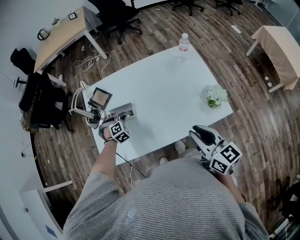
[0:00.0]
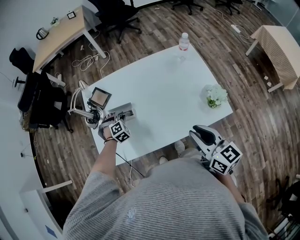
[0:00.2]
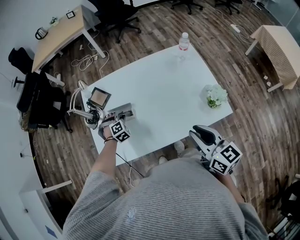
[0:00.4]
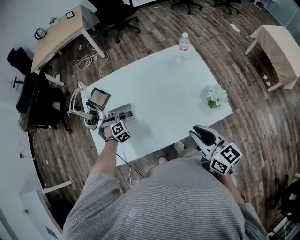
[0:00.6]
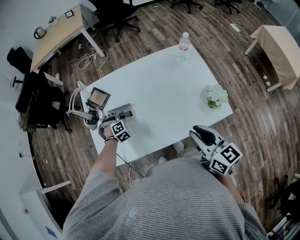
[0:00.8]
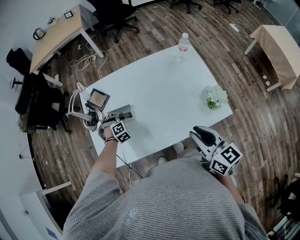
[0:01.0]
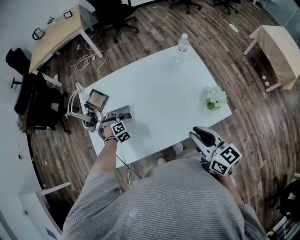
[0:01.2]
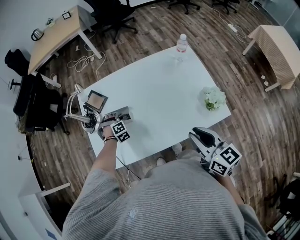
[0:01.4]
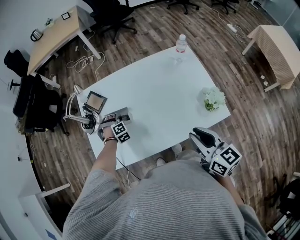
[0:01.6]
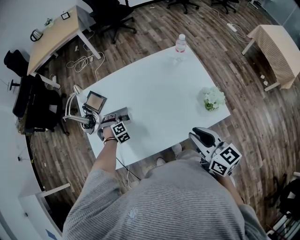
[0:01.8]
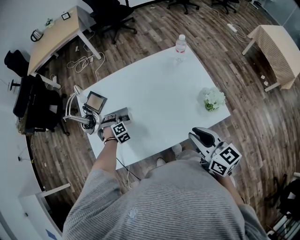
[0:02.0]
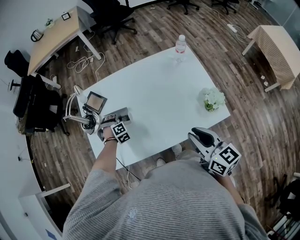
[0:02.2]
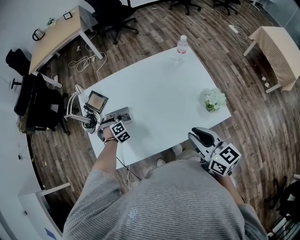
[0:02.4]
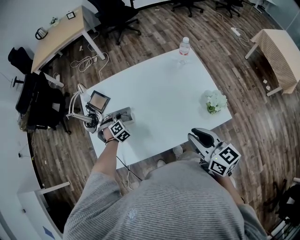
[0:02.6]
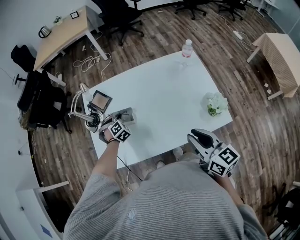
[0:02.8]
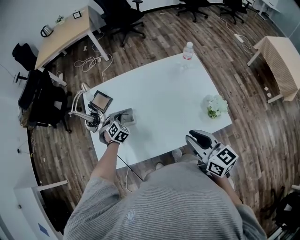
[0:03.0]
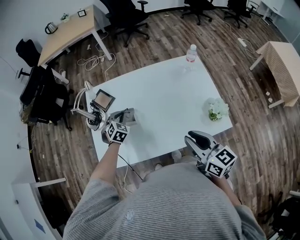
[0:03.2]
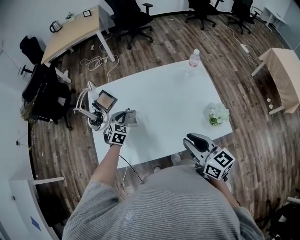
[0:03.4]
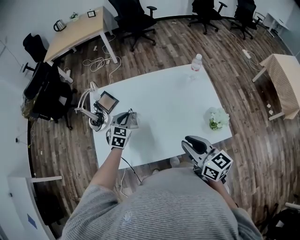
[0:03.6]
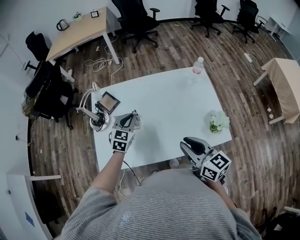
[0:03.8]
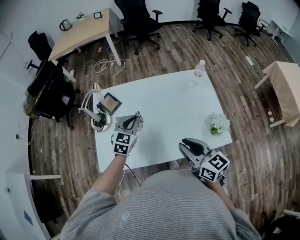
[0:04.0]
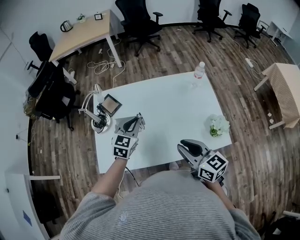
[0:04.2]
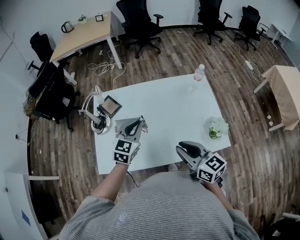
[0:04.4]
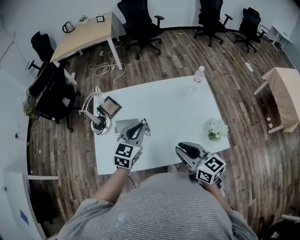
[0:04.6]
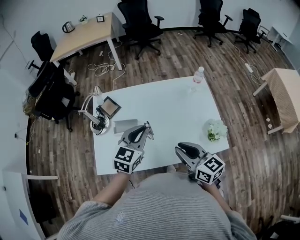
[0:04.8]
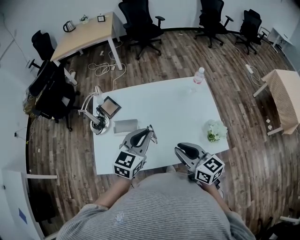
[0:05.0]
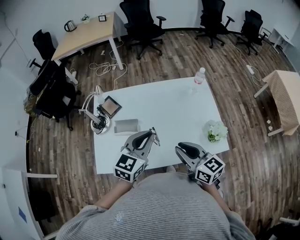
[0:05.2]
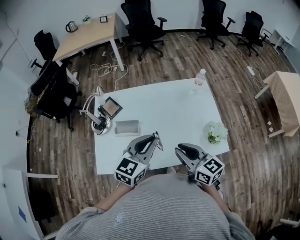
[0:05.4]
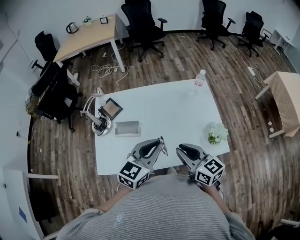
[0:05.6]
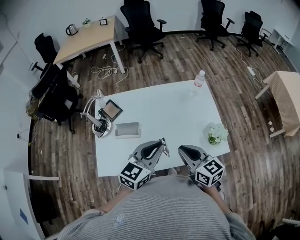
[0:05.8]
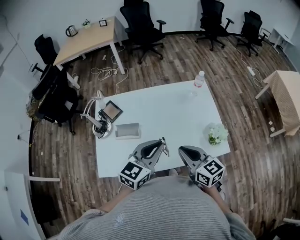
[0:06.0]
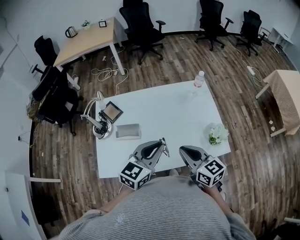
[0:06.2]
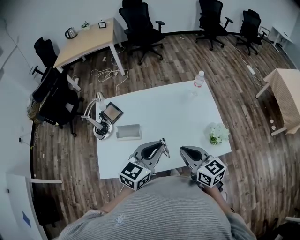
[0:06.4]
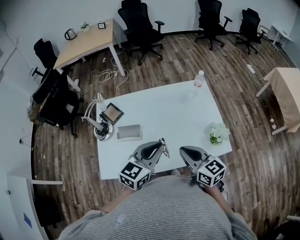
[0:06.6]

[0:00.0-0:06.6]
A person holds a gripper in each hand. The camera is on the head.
0:00.0 to 0:01.6: The left gripper moves roughly 5 cm.
0:01.6 to 0:03.2: The left gripper shifts about 10 cm upward, and rolls counterclockwise, seen from behind, by approximately 40 degrees.
0:03.2 to 0:05.0: The left gripper moves upward, backward and to the right, approximately 25 cm, and rotates about 40 degrees.
0:05.0 to 0:06.6: The left gripper changes place by approximately 5 cm.

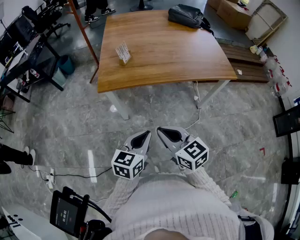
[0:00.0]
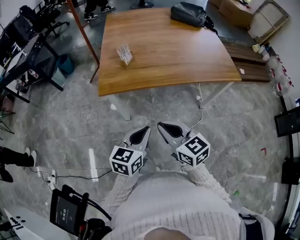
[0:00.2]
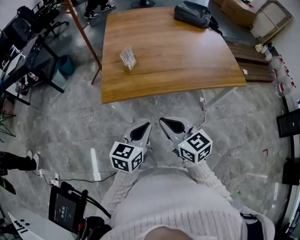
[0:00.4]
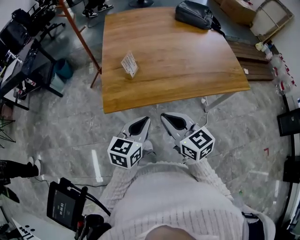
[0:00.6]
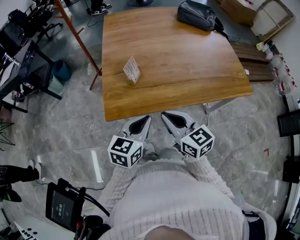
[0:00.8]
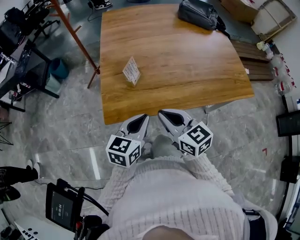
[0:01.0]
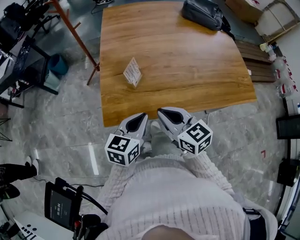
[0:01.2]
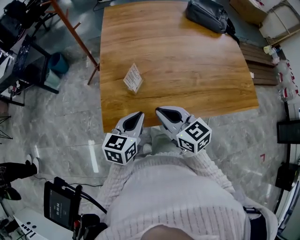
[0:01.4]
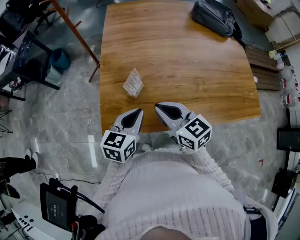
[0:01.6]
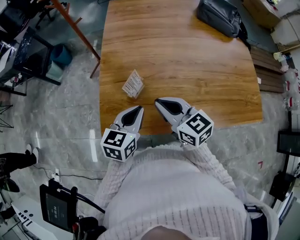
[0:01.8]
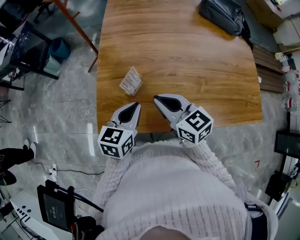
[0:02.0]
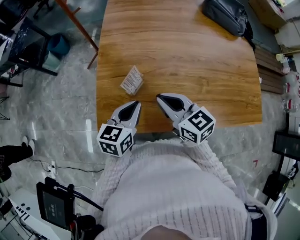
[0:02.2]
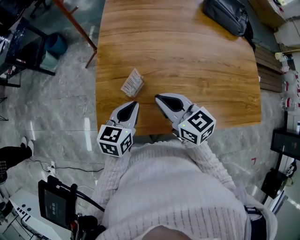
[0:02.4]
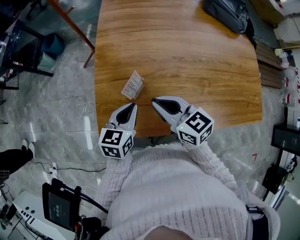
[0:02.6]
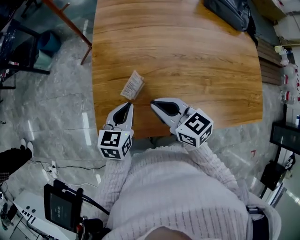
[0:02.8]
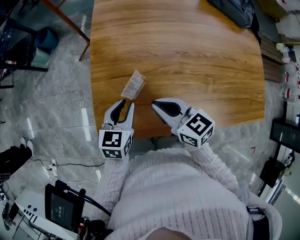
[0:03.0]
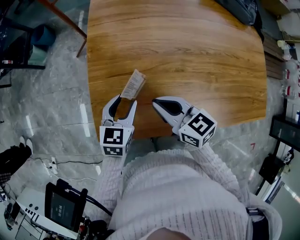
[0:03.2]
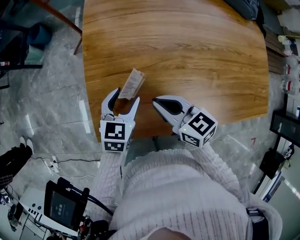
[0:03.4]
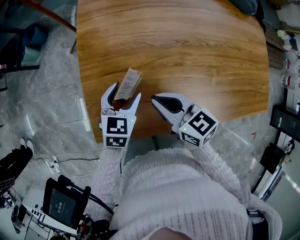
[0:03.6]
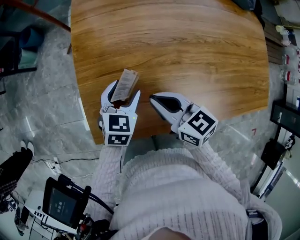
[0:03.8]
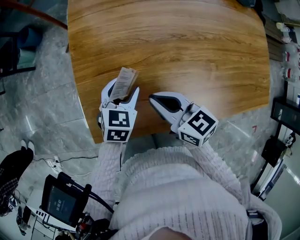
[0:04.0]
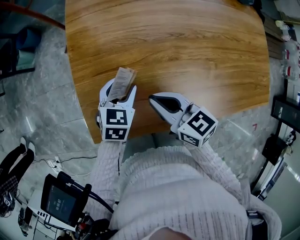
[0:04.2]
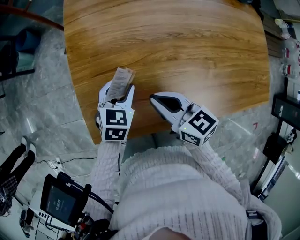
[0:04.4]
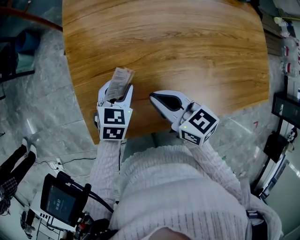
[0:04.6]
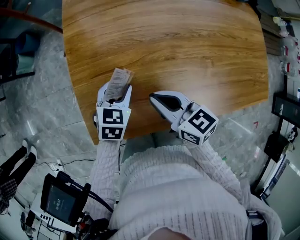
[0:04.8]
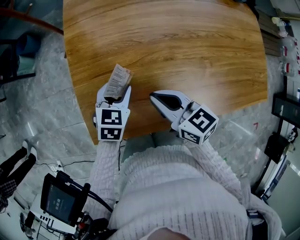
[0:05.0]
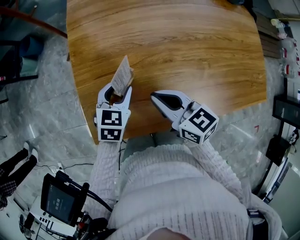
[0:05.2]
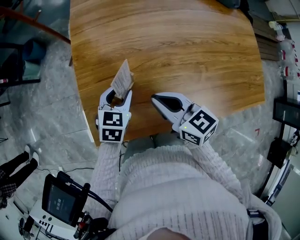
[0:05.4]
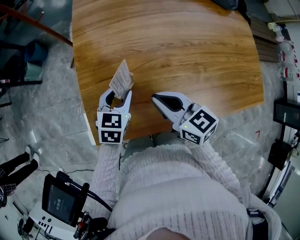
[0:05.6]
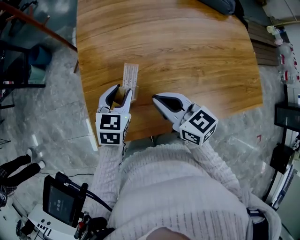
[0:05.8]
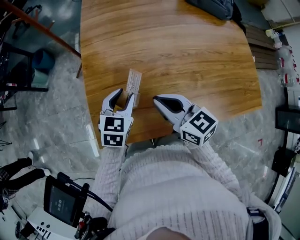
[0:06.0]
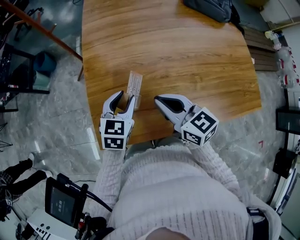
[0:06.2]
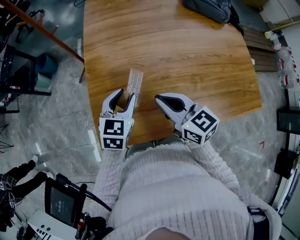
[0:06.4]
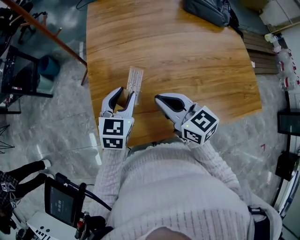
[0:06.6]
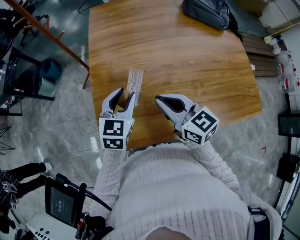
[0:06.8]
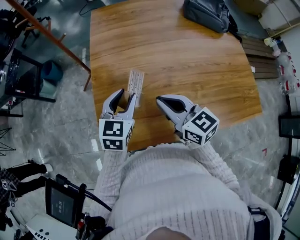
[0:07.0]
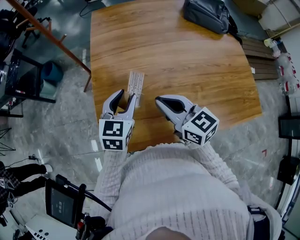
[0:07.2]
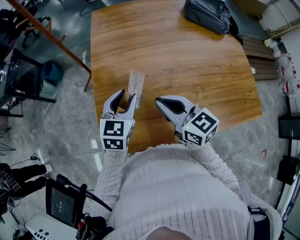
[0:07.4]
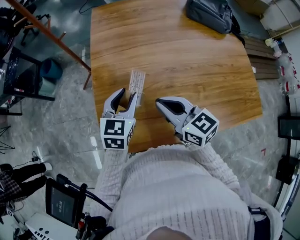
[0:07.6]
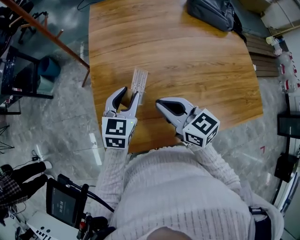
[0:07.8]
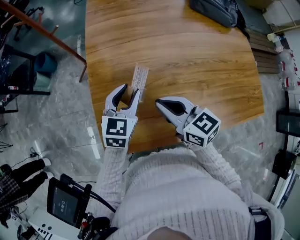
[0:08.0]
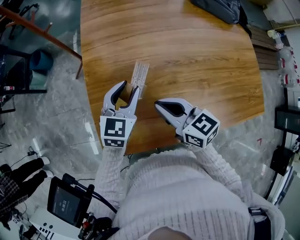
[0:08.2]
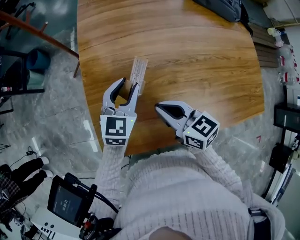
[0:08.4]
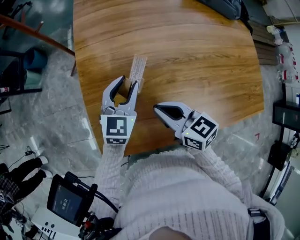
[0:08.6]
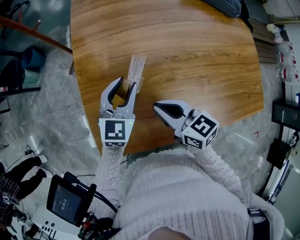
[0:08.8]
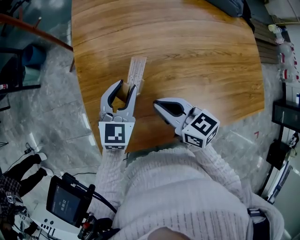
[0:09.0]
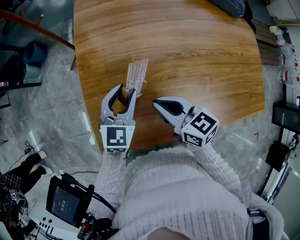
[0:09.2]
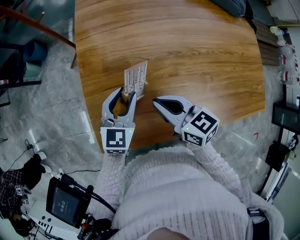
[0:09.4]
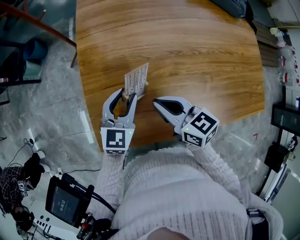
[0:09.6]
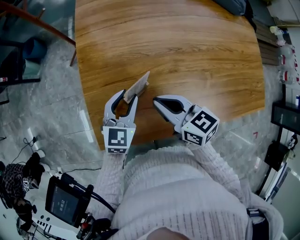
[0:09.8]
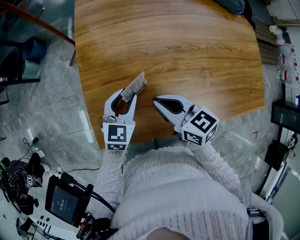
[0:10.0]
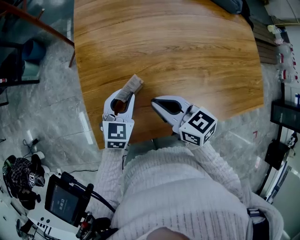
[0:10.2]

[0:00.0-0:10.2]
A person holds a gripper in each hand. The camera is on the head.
0:00.0 to 0:01.4: The grippers both shift forward by some 35 cm.
0:01.4 to 0:03.0: The right gripper moves forward, about 10 cm; the left gripper travels forward and downward by approximately 15 cm.
0:03.0 to 0:04.4: The left gripper goes roughly 5 cm downward, swivels some 20 degrees, and opens up.
0:04.4 to 0:05.8: Both grippers travel together upward, some 5 cm.
0:05.8 to 0:07.2: The grippers both shift upward by about 5 cm.
0:07.2 to 0:08.8: The right gripper heads downward, covering some 10 cm. The left gripper travels downward by about 5 cm.
0:08.8 to 0:10.2: The left gripper goes approximately 10 cm downward and backward.

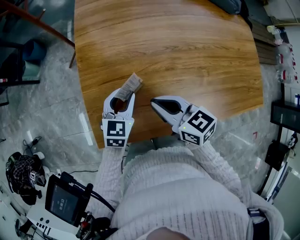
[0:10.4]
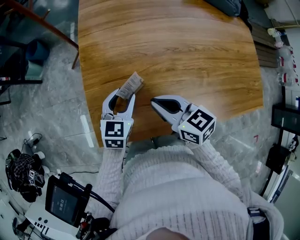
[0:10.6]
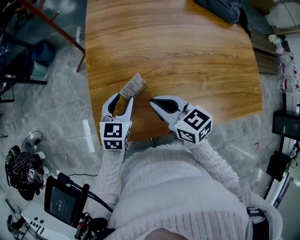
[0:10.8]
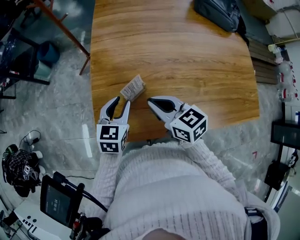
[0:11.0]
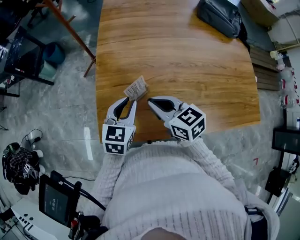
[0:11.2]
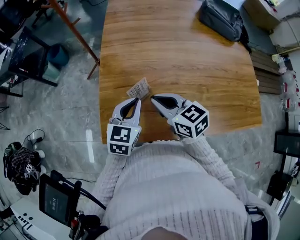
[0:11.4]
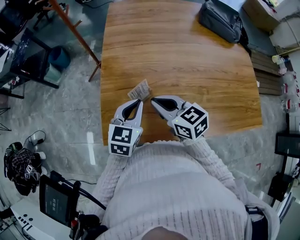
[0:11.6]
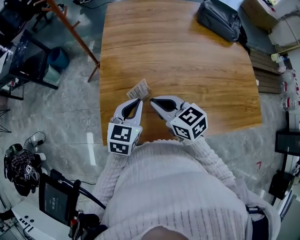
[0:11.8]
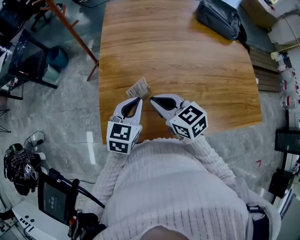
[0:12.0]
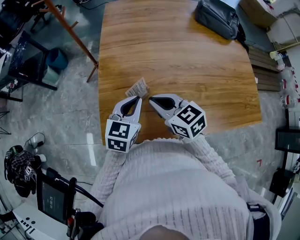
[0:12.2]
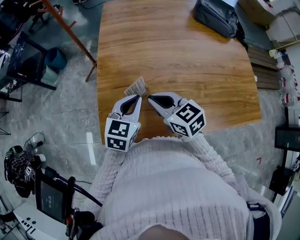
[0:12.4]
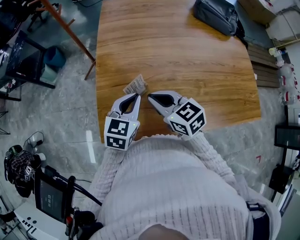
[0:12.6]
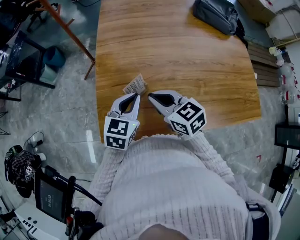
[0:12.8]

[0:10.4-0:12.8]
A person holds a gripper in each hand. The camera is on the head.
0:10.4 to 0:11.6: The left gripper goes some 10 cm upward, and closes its fingers.
0:11.6 to 0:12.8: Neither gripper changes place.

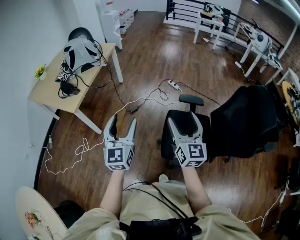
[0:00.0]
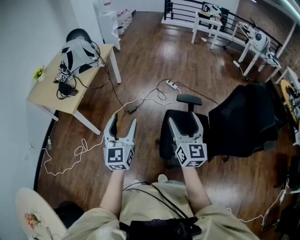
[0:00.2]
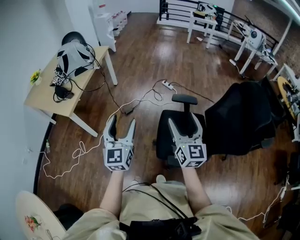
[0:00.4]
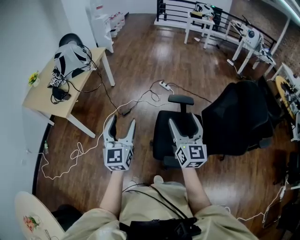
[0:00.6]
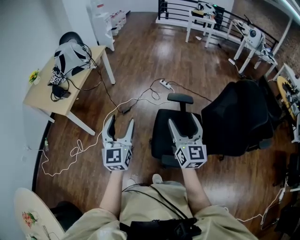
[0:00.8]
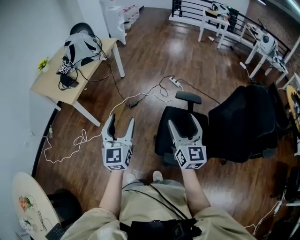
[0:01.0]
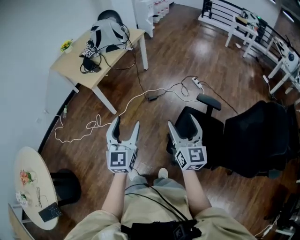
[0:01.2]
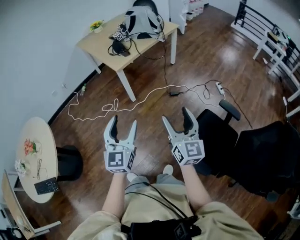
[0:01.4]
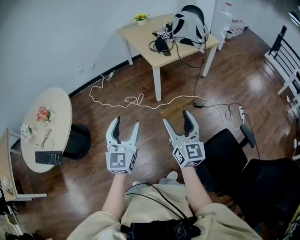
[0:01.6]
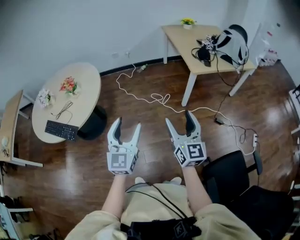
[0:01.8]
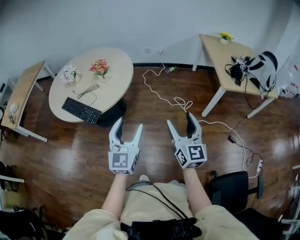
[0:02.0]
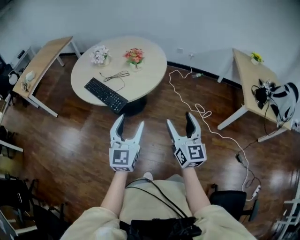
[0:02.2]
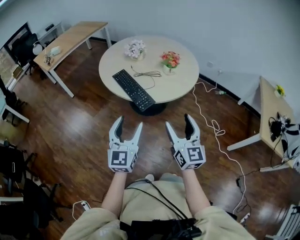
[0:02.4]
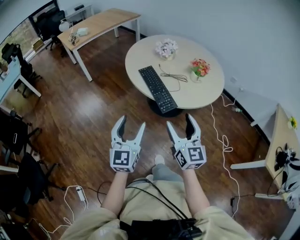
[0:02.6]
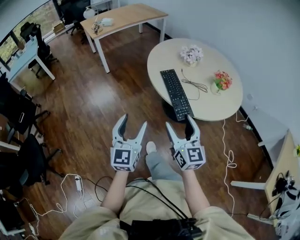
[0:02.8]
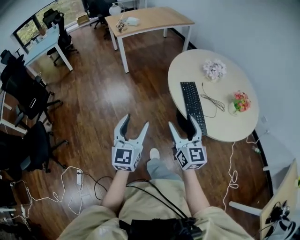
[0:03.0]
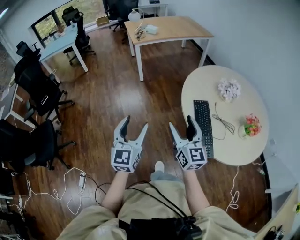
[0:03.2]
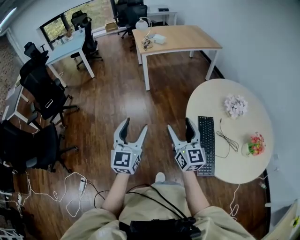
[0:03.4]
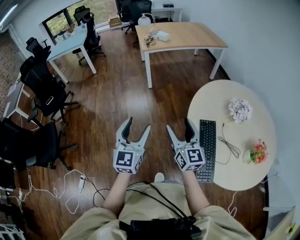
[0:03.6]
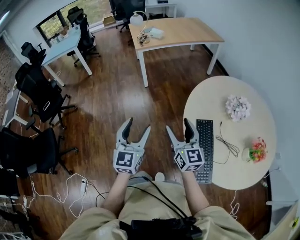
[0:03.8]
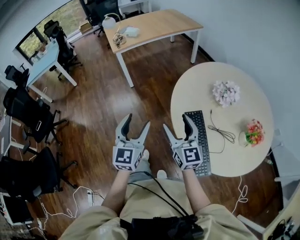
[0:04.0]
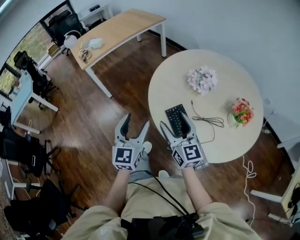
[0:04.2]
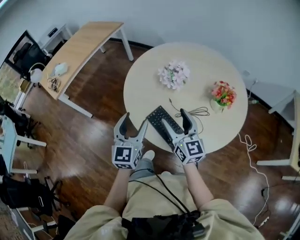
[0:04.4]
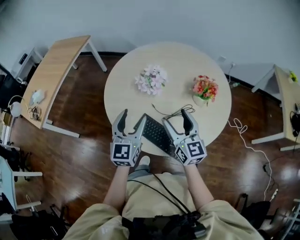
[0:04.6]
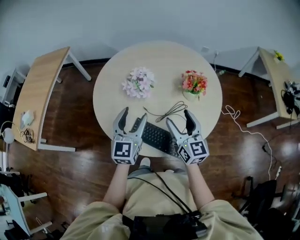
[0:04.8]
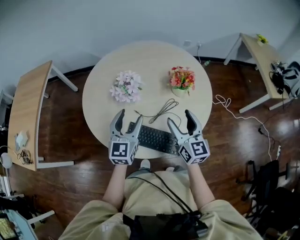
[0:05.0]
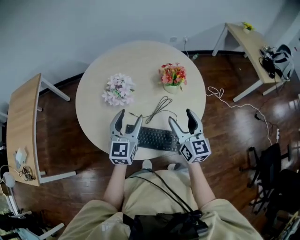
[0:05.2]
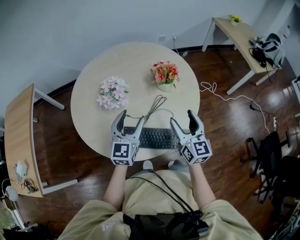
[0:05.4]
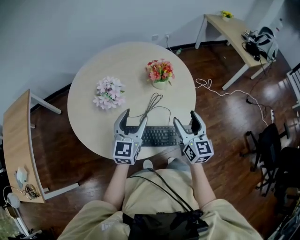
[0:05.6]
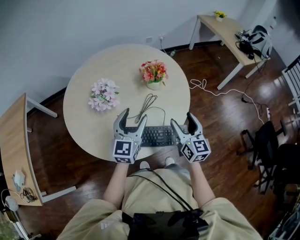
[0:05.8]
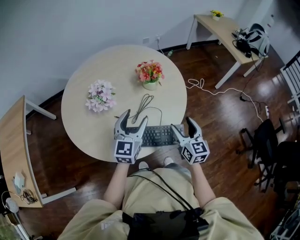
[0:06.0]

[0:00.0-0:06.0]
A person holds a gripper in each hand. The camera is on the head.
0:00.0 to 0:01.6: The right gripper moves roughly 30 cm, and rotates approximately 50 degrees. The left gripper moves about 35 cm, and rotates some 50 degrees.
0:01.6 to 0:03.0: The two grippers travel together, about 90 cm. The left gripper turns by some 90 degrees; the right gripper changes its angle by approximately 90 degrees.
0:03.0 to 0:04.4: The right gripper shifts by approximately 35 cm, and swivels about 30 degrees. Meanwhile the left gripper ends up about 40 cm from where it was, and changes its angle by about 30 degrees.
0:04.4 to 0:06.0: The right gripper shifts by some 20 cm, and swivels some 60 degrees, while the left gripper shifts by approximately 20 cm, and changes its angle by roughly 60 degrees.
